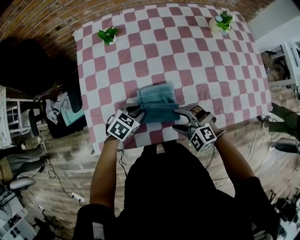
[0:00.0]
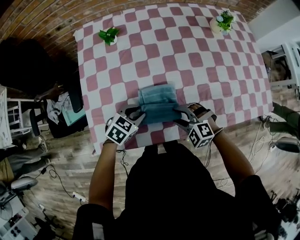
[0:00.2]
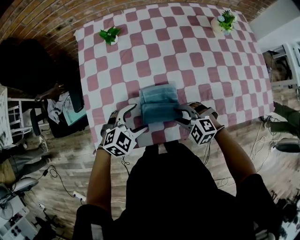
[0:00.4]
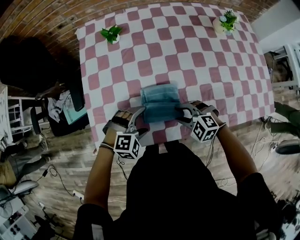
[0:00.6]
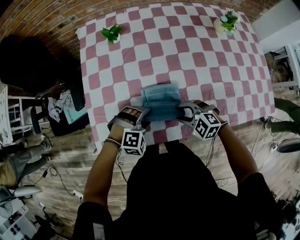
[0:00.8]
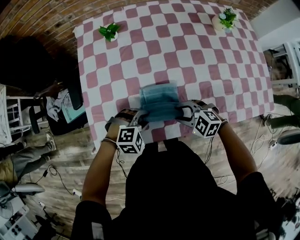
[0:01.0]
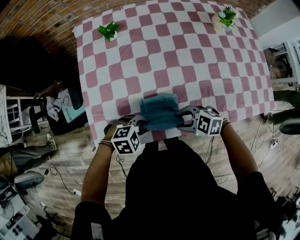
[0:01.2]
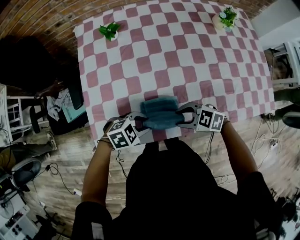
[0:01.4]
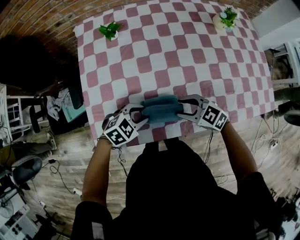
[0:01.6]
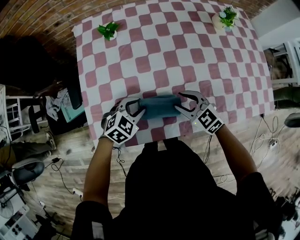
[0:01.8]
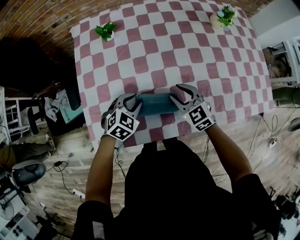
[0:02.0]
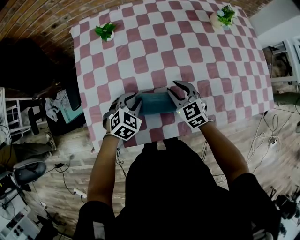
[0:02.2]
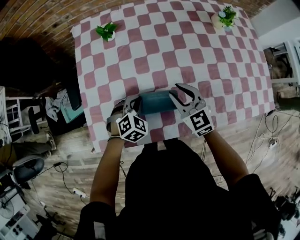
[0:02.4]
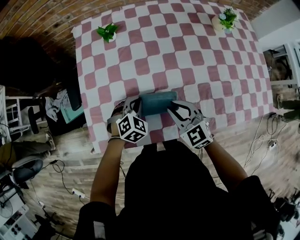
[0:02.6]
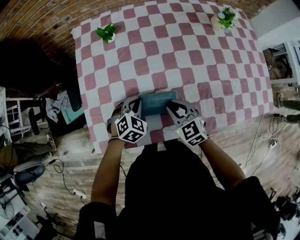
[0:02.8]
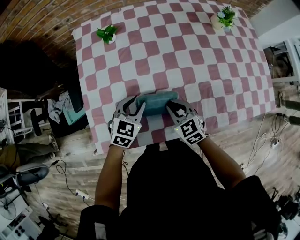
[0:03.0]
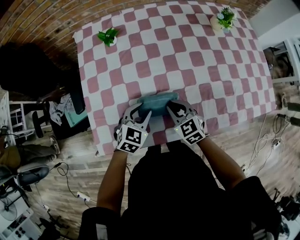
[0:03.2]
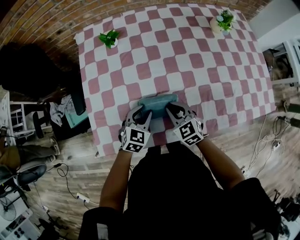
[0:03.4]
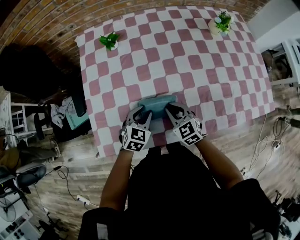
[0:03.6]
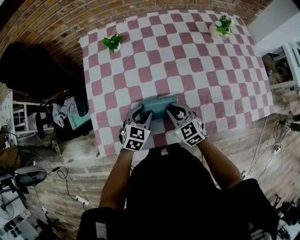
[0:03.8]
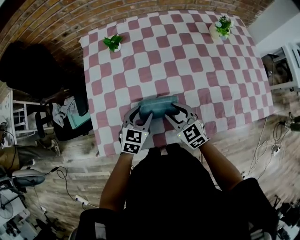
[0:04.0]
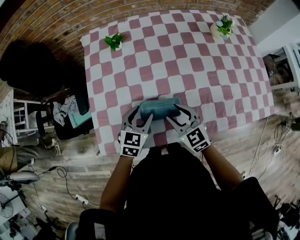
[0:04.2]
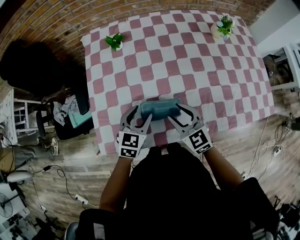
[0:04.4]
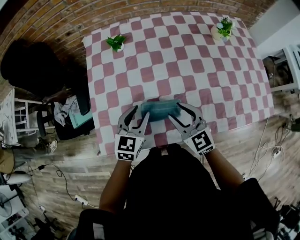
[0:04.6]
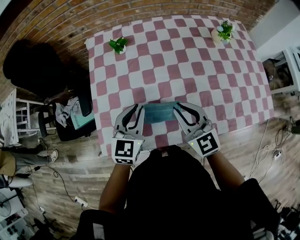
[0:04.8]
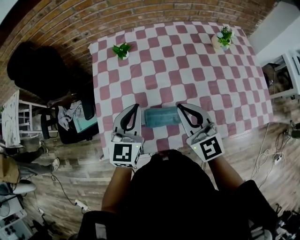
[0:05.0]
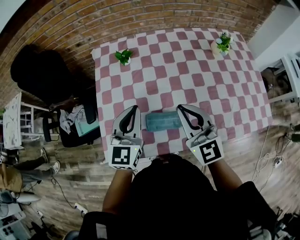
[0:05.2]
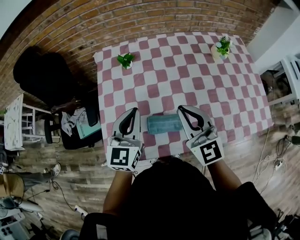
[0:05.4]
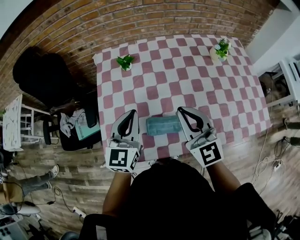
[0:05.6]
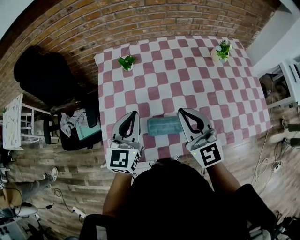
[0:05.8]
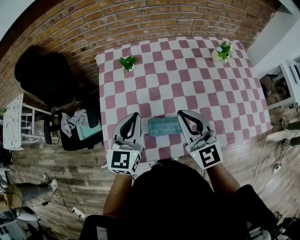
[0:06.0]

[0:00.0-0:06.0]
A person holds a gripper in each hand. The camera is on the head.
0.0 to 1.6 s: The right gripper turns by approximately 40 degrees. Meanwhile the left gripper changes its angle by approximately 20 degrees, and opens, then closes again.
1.6 to 3.0 s: The right gripper swivels some 30 degrees; the left gripper shifts by about 10 cm, and turns by some 30 degrees.
3.0 to 4.4 s: The right gripper goes about 5 cm upward.
4.4 to 6.0 s: The grippers both shift upward by about 20 cm. The right gripper rotates about 20 degrees. The left gripper swivels about 30 degrees, and closes up.

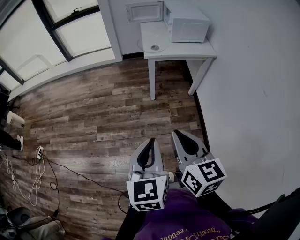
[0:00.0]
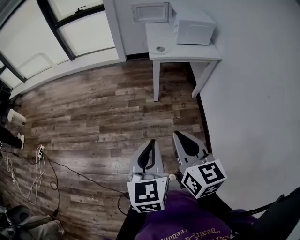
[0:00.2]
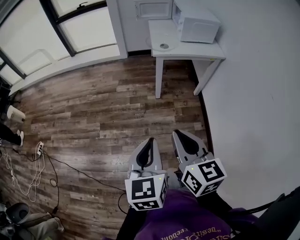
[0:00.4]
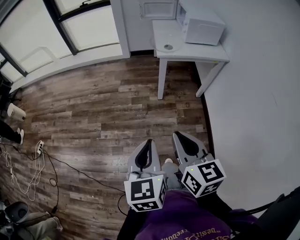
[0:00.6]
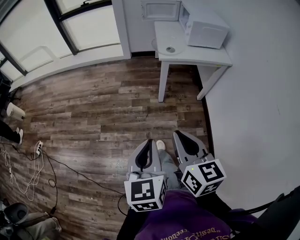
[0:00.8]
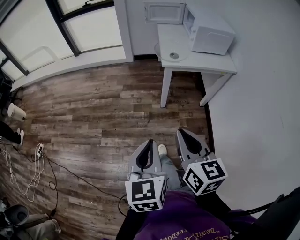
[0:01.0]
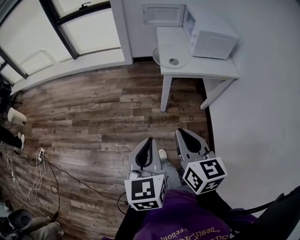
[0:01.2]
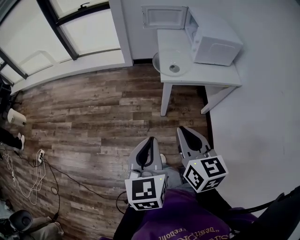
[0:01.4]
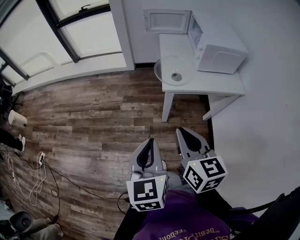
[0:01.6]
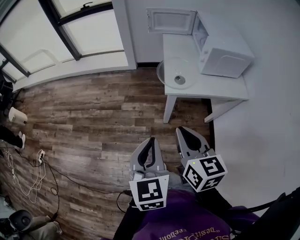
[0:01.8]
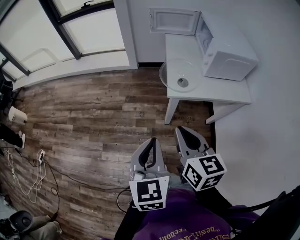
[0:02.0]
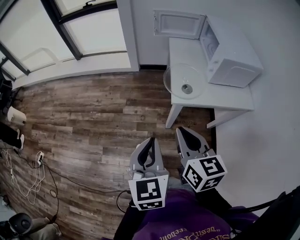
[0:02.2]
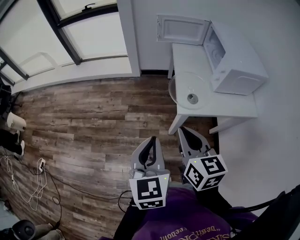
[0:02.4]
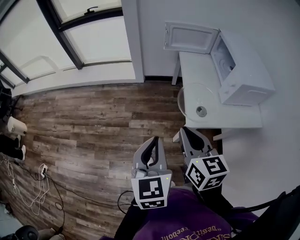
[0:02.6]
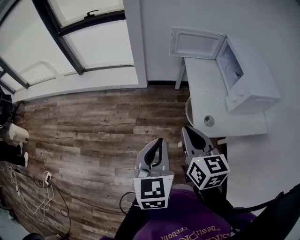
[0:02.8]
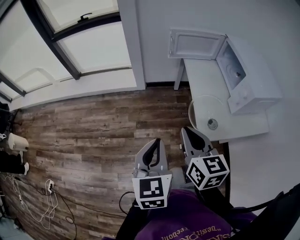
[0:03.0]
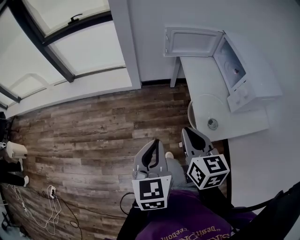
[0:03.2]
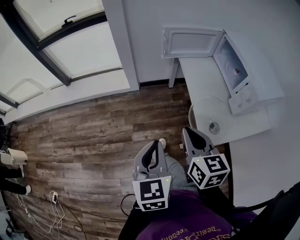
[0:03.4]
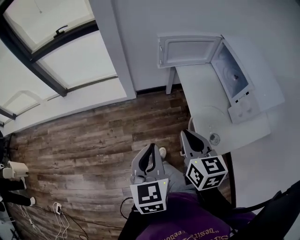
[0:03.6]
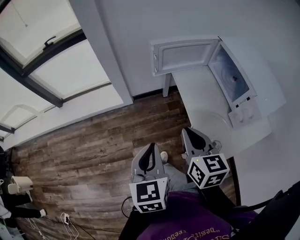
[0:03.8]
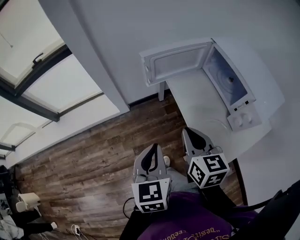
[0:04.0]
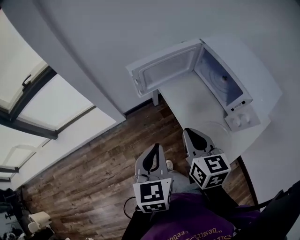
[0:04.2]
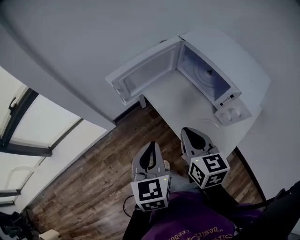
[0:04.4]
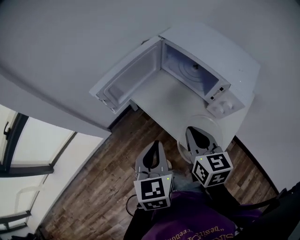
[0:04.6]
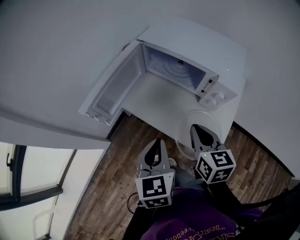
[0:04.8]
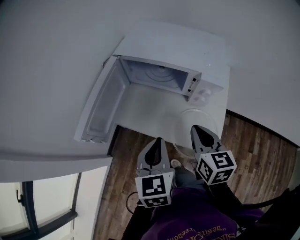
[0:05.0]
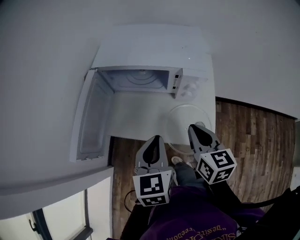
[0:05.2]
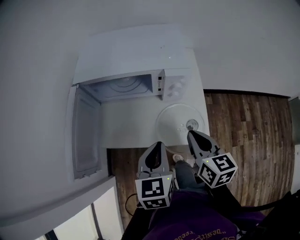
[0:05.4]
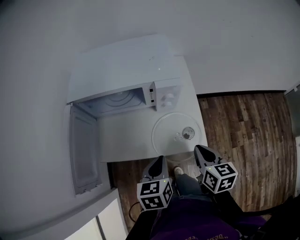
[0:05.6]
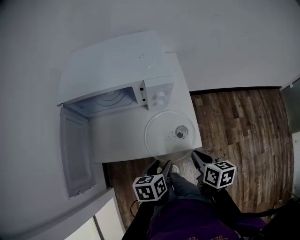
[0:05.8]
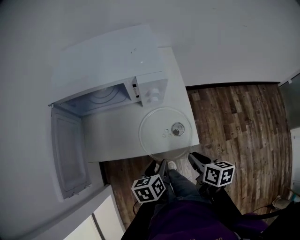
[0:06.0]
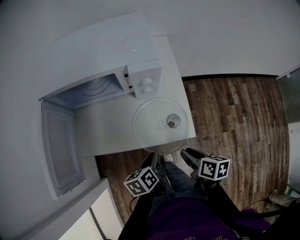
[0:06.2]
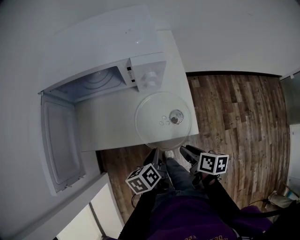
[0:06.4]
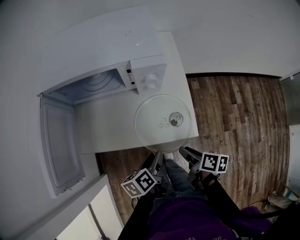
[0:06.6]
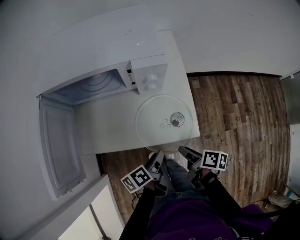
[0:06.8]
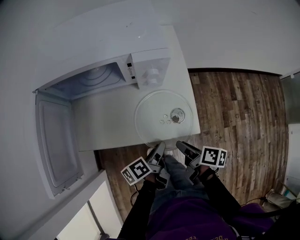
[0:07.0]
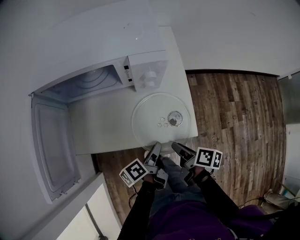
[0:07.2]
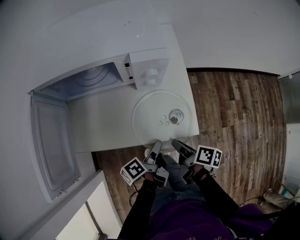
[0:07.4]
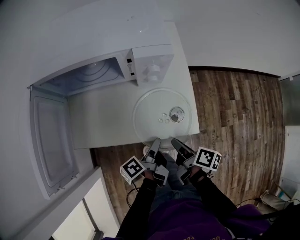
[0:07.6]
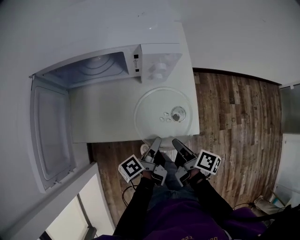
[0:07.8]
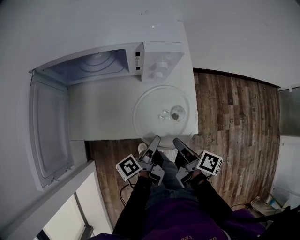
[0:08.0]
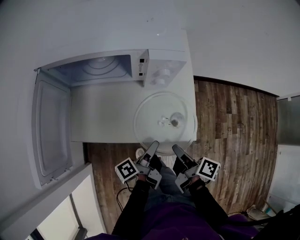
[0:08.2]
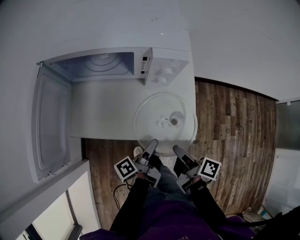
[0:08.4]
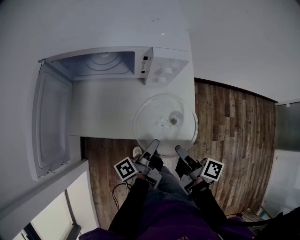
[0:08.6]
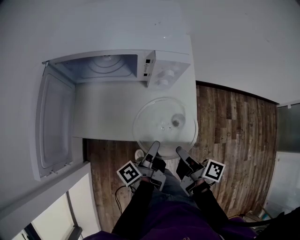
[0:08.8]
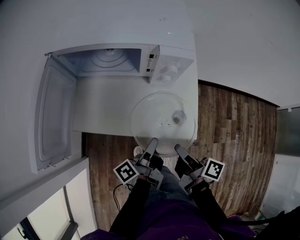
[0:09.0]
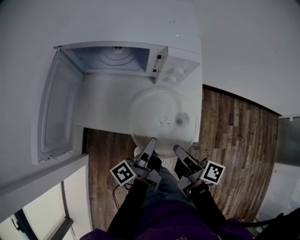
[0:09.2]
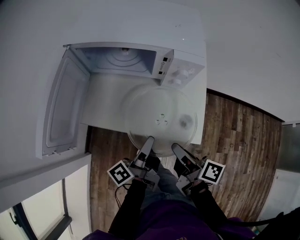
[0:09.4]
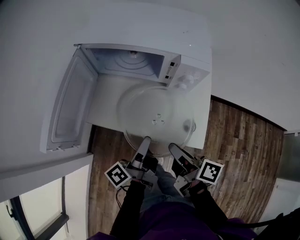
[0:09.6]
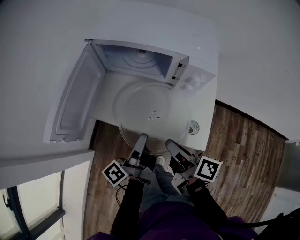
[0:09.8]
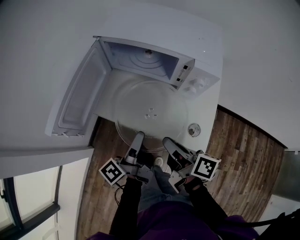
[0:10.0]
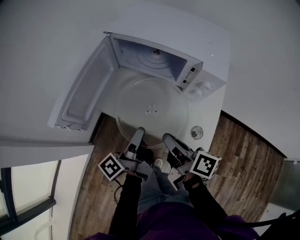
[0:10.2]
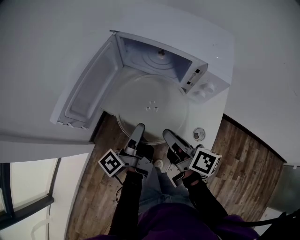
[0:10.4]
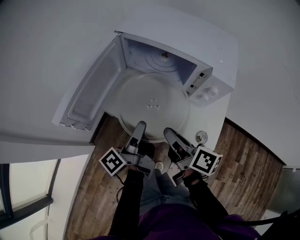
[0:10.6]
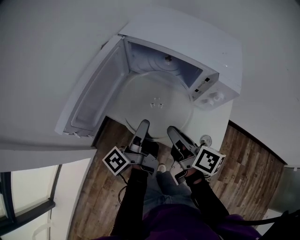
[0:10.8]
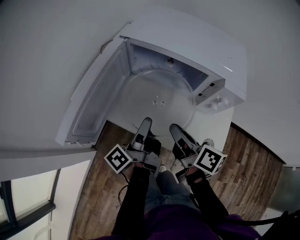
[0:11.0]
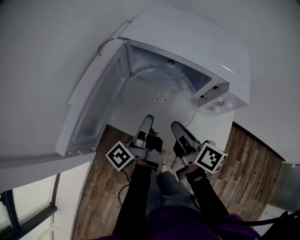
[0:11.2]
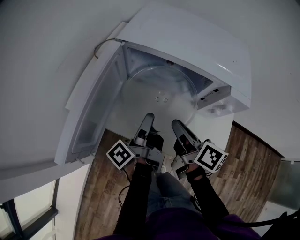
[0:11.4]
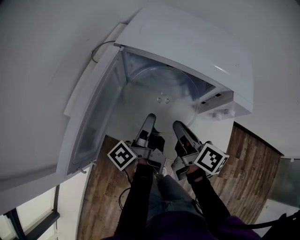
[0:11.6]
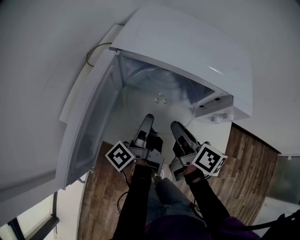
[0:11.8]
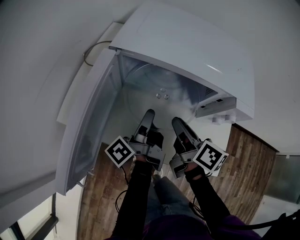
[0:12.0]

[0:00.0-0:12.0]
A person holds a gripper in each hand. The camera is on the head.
0.0 to 1.6 s: The grippers both shift forward by approximately 30 cm.
1.6 to 3.0 s: Both grippers travel together forward, some 35 cm.
3.0 to 4.4 s: The left gripper moves roughly 35 cm, and rotates approximately 30 degrees. The right gripper ends up about 30 cm from where it was, and turns by some 30 degrees.
4.4 to 6.0 s: The left gripper is displaced downward by some 20 cm, turns by about 70 degrees, and opens. Meanwhile the right gripper shifts by roughly 25 cm, and turns by roughly 70 degrees.
6.0 to 7.6 s: The right gripper travels downward by about 5 cm, and rotates some 40 degrees, while the left gripper moves about 5 cm, rolls counterclockwise, seen from behind, by approximately 50 degrees, and closes its fingers.
7.6 to 9.0 s: The grippers both shift upward by about 5 cm.
9.0 to 10.4 s: The left gripper shifts by approximately 15 cm, and swivels roughly 30 degrees, while the right gripper shifts by roughly 15 cm, and turns by some 30 degrees.
10.4 to 12.0 s: Both grippers move forward, some 15 cm.

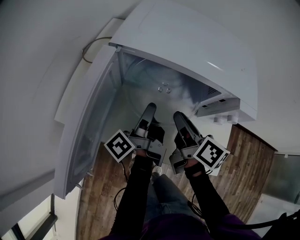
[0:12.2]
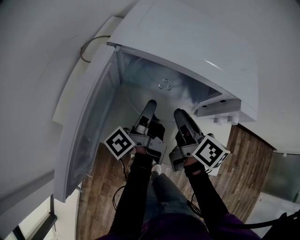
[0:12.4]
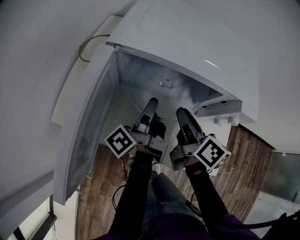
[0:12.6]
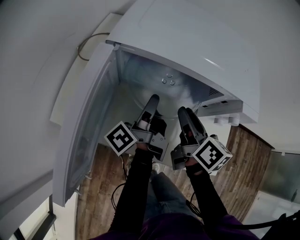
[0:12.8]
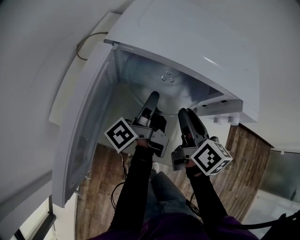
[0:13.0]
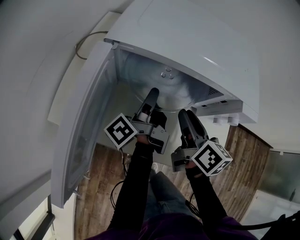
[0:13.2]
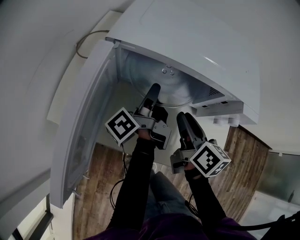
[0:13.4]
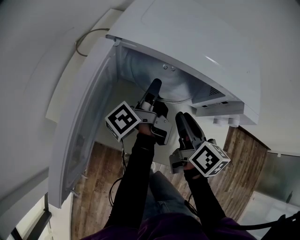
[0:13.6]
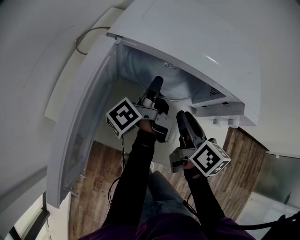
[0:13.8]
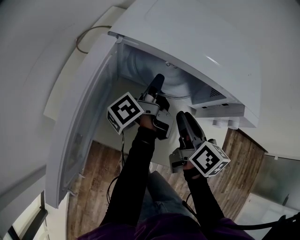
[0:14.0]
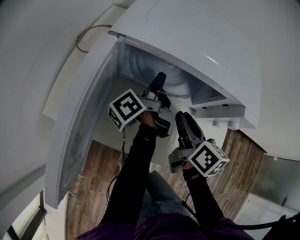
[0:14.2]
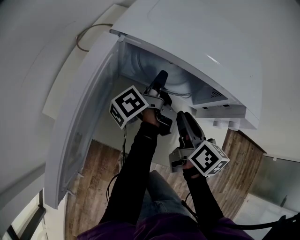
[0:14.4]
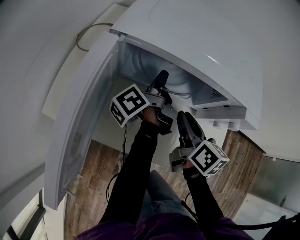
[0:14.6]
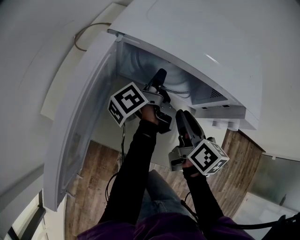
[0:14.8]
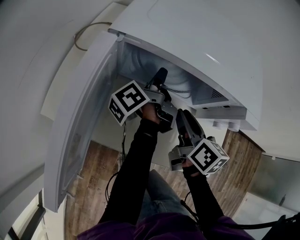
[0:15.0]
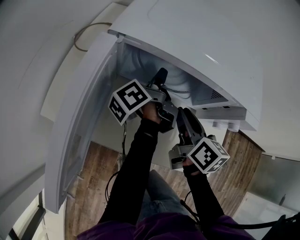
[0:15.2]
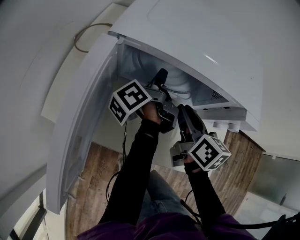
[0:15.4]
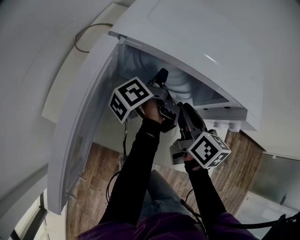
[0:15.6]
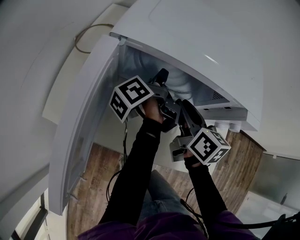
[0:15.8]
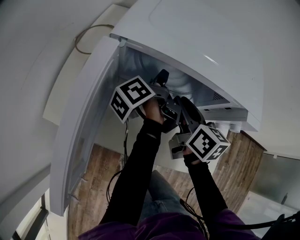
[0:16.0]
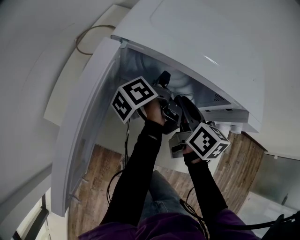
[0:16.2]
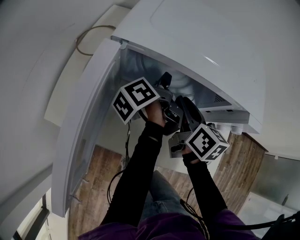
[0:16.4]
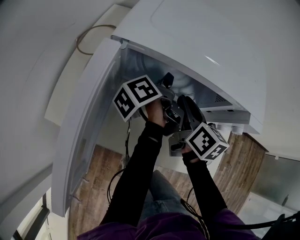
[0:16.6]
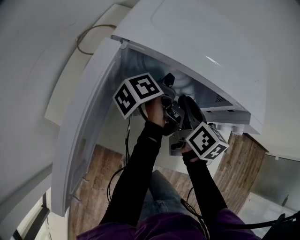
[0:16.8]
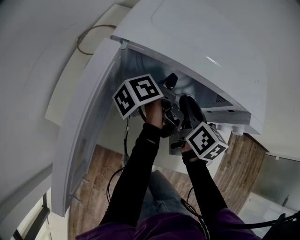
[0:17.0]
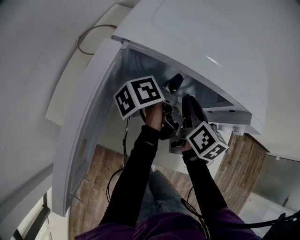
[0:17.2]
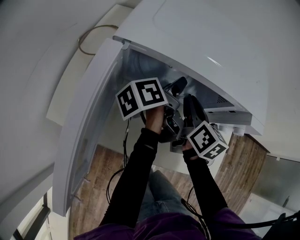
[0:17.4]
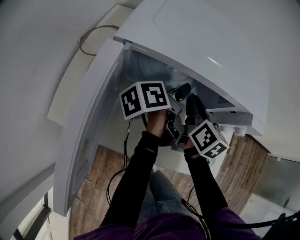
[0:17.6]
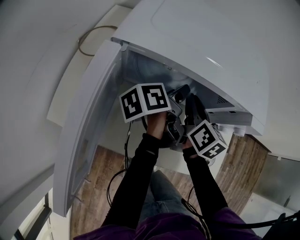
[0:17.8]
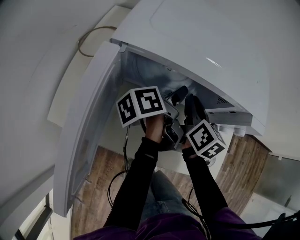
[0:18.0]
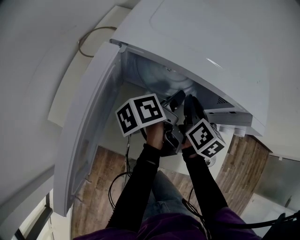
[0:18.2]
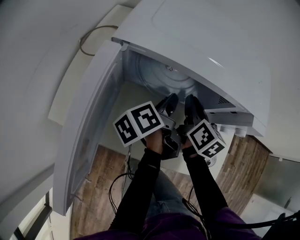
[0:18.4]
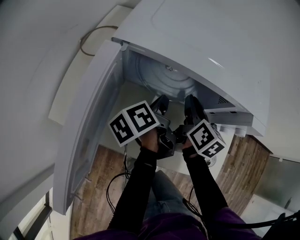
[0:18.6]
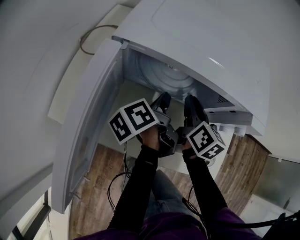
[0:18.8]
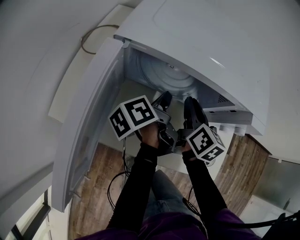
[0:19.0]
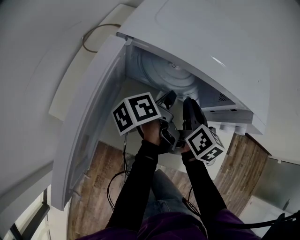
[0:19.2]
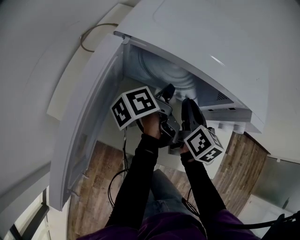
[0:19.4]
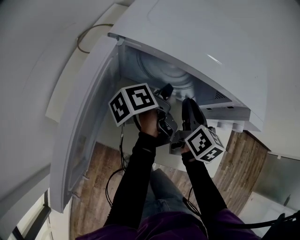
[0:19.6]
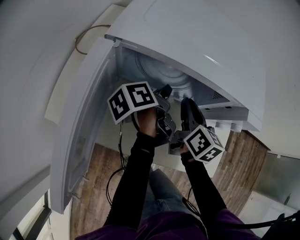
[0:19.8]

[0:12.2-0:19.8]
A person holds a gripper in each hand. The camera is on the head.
12.2 to 13.8 s: The left gripper heads forward, covering some 10 cm.
13.8 to 15.2 s: The grippers make only small movements.
15.2 to 16.8 s: The grippers make only small movements.
16.8 to 18.2 s: The left gripper ends up about 5 cm from where it was, and opens its fingers.
18.2 to 19.8 s: The left gripper closes.
